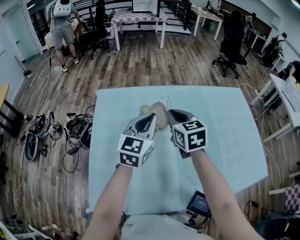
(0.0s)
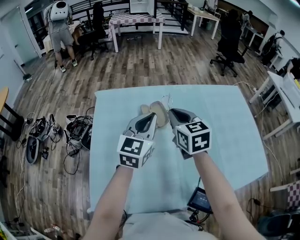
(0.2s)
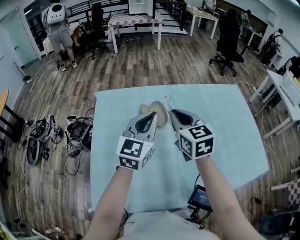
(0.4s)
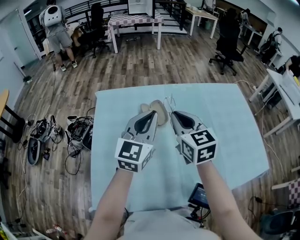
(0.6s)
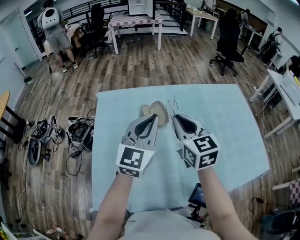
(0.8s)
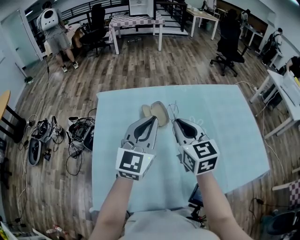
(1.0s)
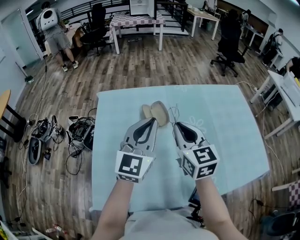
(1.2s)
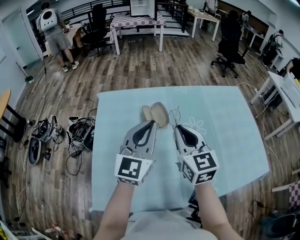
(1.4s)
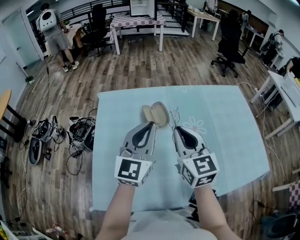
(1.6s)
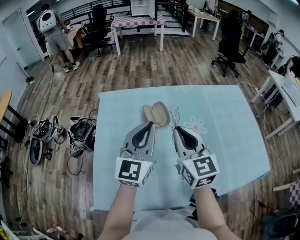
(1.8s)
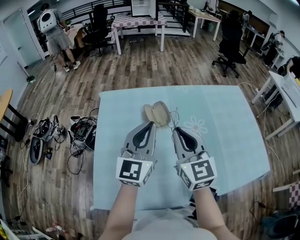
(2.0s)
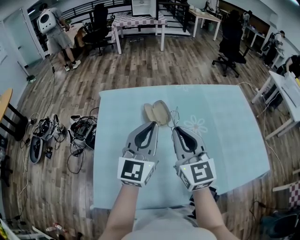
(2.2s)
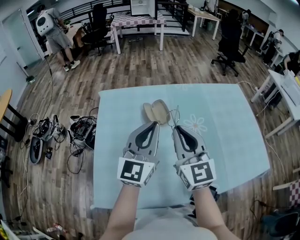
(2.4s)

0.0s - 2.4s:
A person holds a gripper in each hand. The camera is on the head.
0.0s - 1.2s: The left gripper travels backward and upward by roughly 10 cm. The right gripper moves backward, about 10 cm.
1.2s - 2.4s: The right gripper ends up roughly 5 cm from where it was.

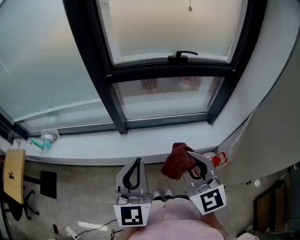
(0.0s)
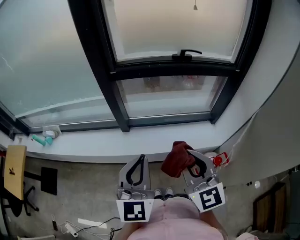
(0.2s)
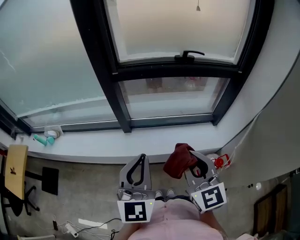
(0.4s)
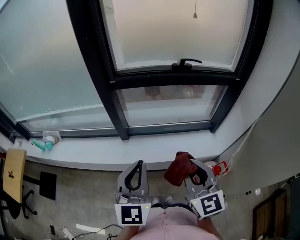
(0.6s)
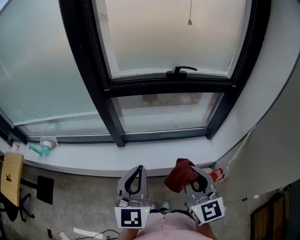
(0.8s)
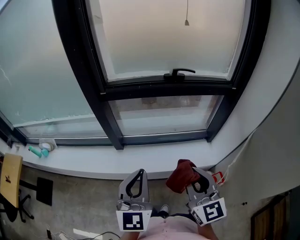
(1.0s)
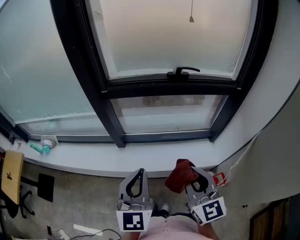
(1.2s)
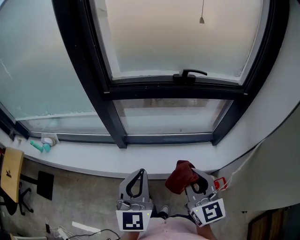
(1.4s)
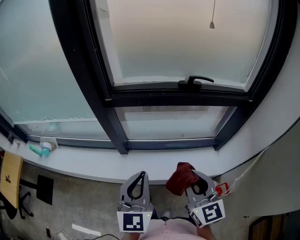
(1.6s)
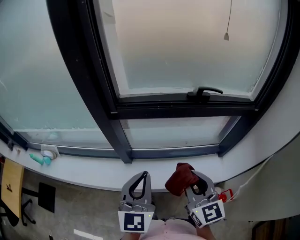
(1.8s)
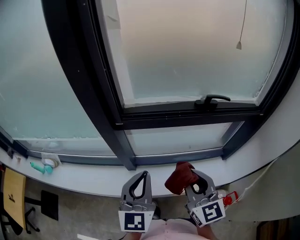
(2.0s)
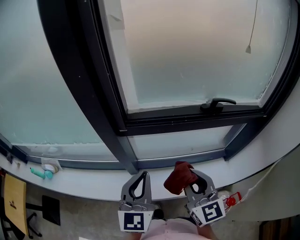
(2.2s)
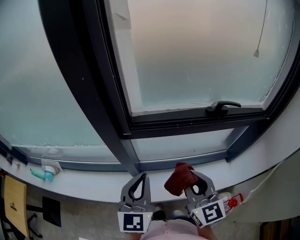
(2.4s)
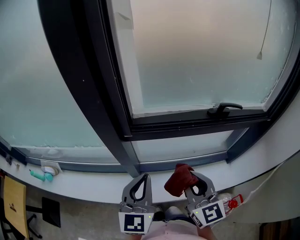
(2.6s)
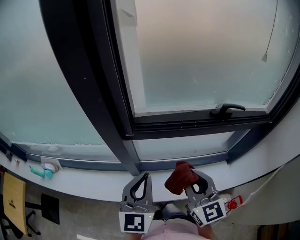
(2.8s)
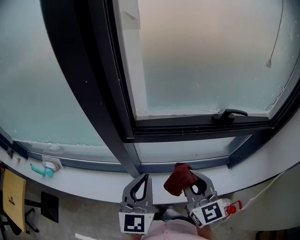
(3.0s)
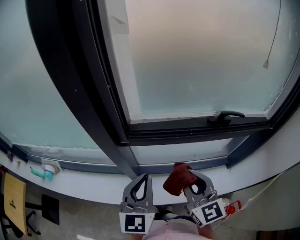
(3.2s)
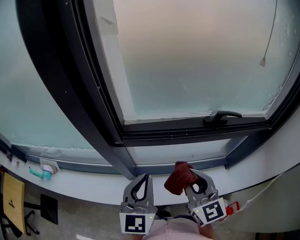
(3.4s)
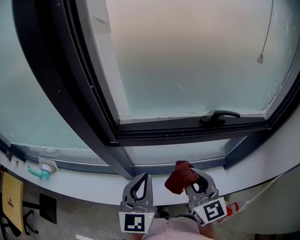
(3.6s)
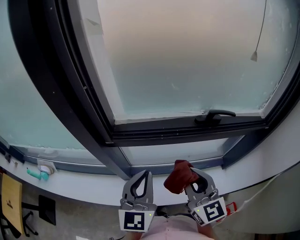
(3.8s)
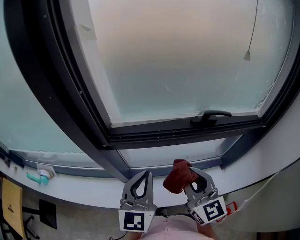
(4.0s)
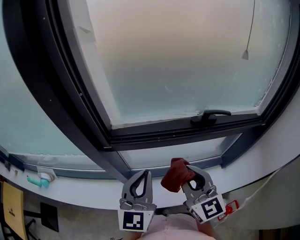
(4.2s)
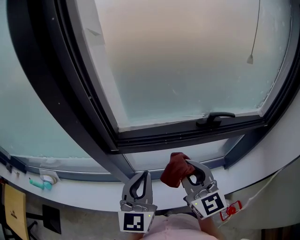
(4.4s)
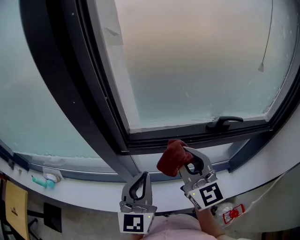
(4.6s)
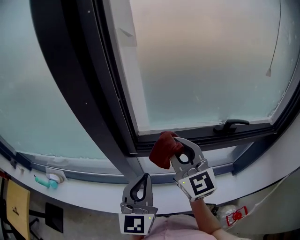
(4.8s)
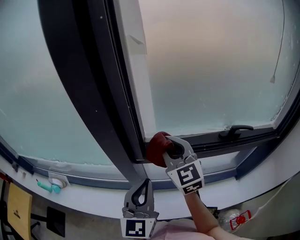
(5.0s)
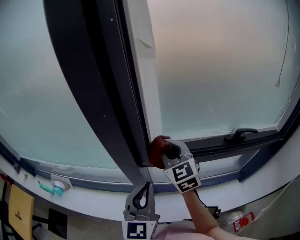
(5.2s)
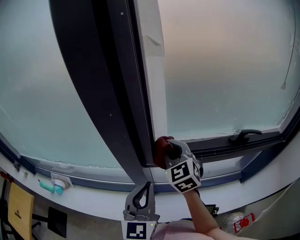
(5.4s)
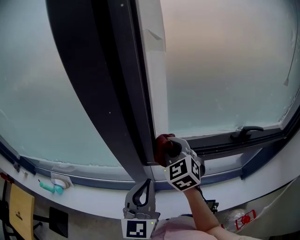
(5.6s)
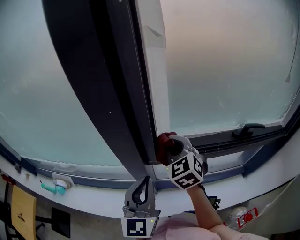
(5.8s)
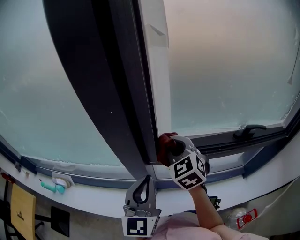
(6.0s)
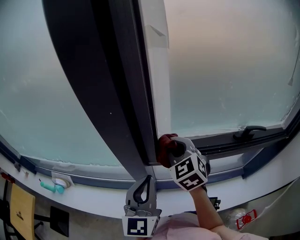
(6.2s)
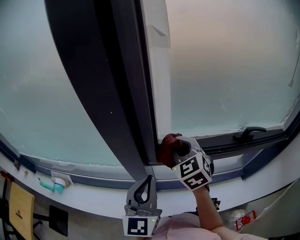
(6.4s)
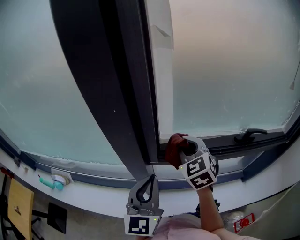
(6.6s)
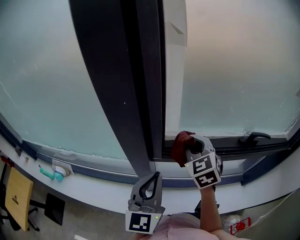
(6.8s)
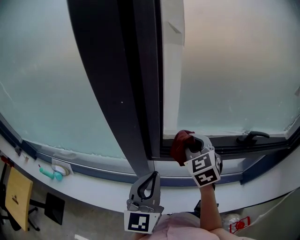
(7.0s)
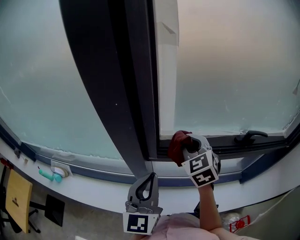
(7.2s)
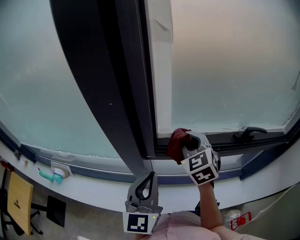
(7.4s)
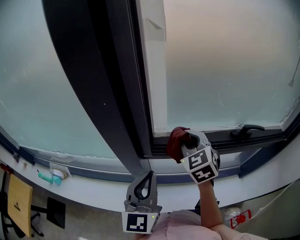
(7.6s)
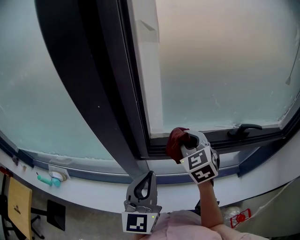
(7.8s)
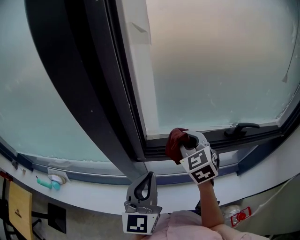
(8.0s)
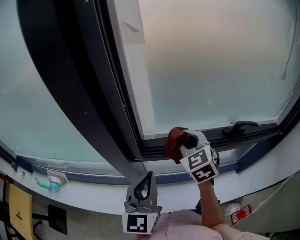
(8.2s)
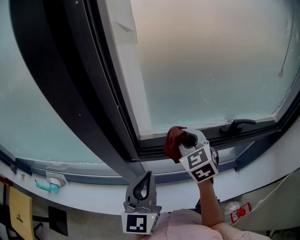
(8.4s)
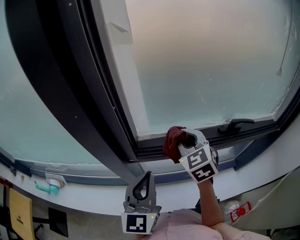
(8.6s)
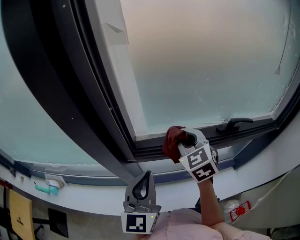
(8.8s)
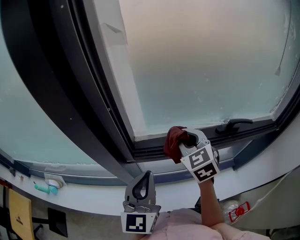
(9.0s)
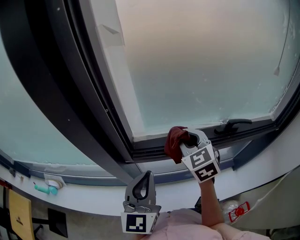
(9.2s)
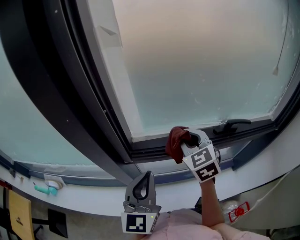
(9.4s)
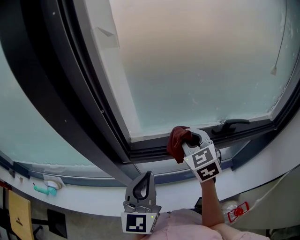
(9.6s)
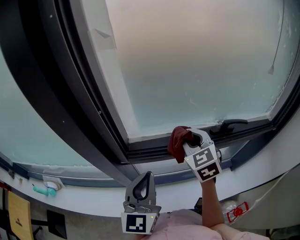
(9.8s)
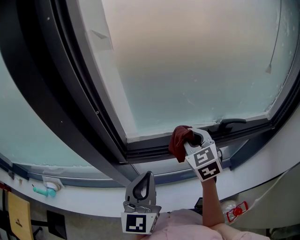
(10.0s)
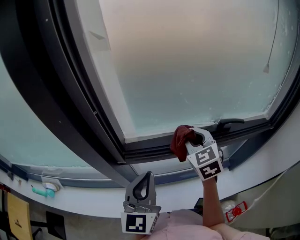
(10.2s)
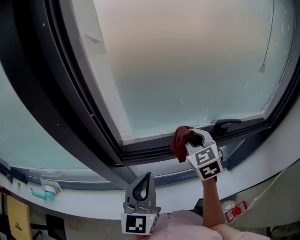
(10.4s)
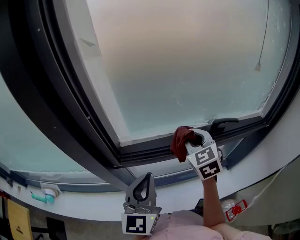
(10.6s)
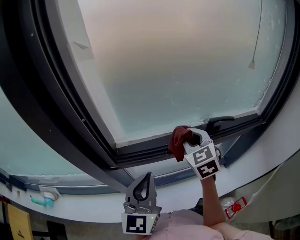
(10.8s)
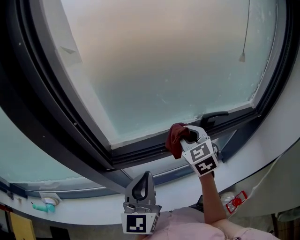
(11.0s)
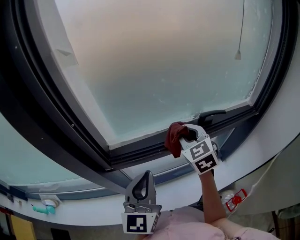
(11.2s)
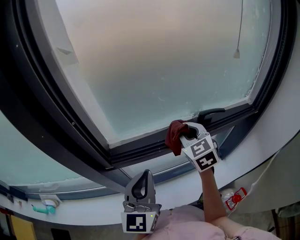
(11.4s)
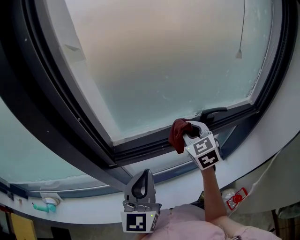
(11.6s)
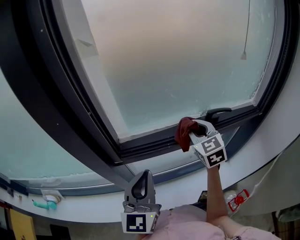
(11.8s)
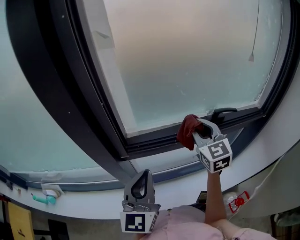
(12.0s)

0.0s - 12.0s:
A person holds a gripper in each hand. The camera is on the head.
0.0s - 1.6s: The right gripper shifts some 15 cm forward and to the right, while the left gripper travels forward by about 15 cm.
1.6s - 3.0s: The two grippers go roughly 25 cm forward and to the left.
3.0s - 4.4s: The right gripper moves approximately 10 cm; the left gripper heads to the right, covering approximately 5 cm.
4.4s - 6.0s: The left gripper goes about 15 cm to the left and forward, while the right gripper travels forward and to the left by roughly 25 cm, and changes its angle by approximately 30 degrees.
6.0s - 7.6s: The right gripper moves to the right, roughly 5 cm.
7.6s - 9.0s: The right gripper is displaced to the right by approximately 5 cm, while the left gripper moves approximately 5 cm.
9.0s - 10.4s: The right gripper moves to the right, about 10 cm.
10.4s - 12.0s: The grippers move only a little.

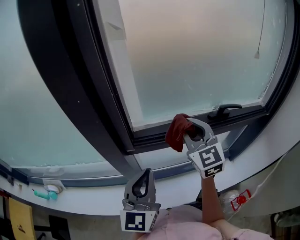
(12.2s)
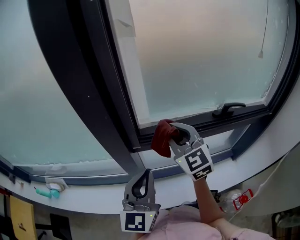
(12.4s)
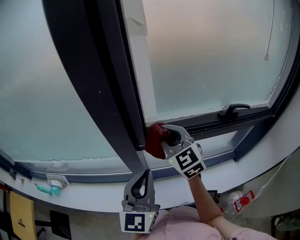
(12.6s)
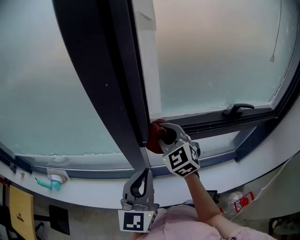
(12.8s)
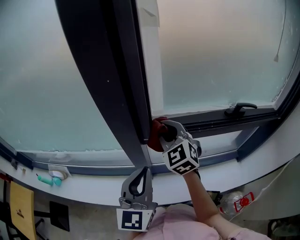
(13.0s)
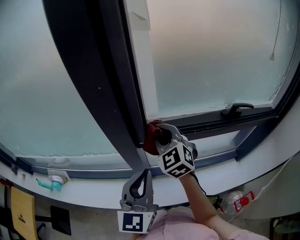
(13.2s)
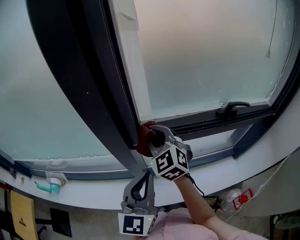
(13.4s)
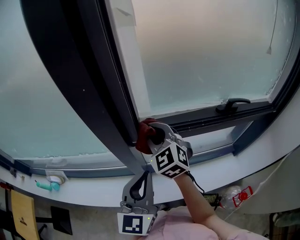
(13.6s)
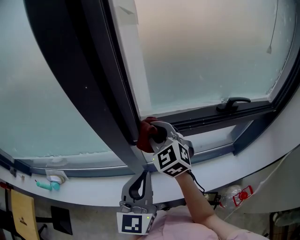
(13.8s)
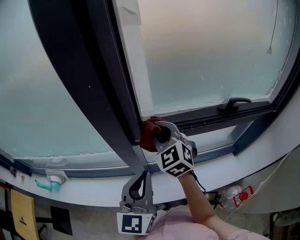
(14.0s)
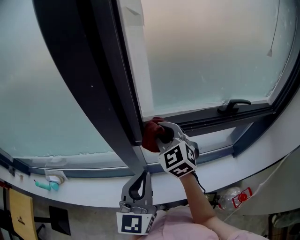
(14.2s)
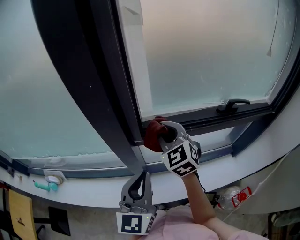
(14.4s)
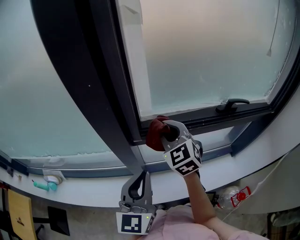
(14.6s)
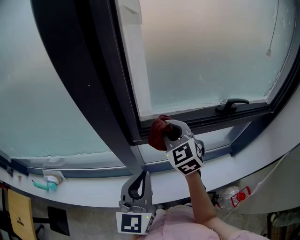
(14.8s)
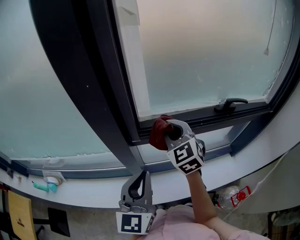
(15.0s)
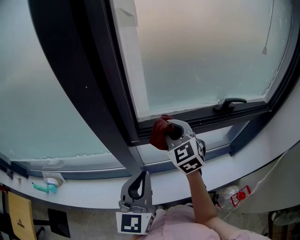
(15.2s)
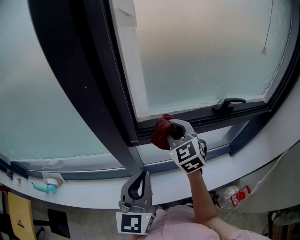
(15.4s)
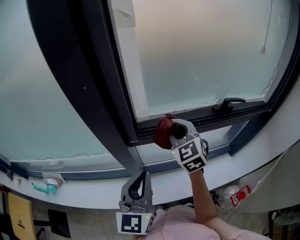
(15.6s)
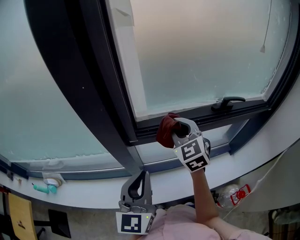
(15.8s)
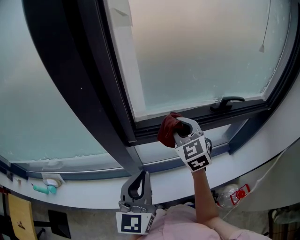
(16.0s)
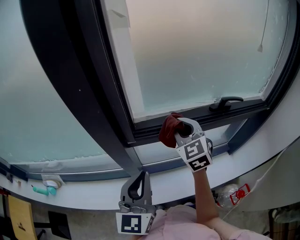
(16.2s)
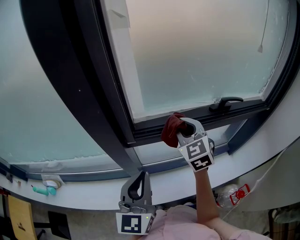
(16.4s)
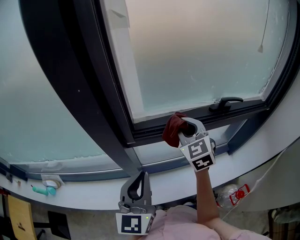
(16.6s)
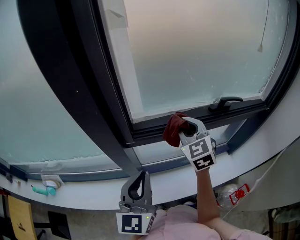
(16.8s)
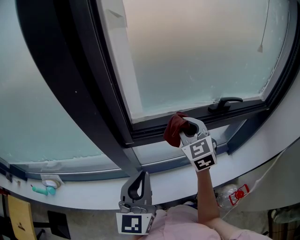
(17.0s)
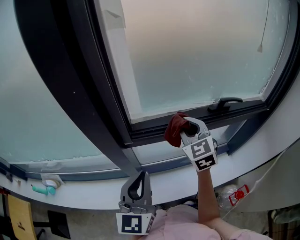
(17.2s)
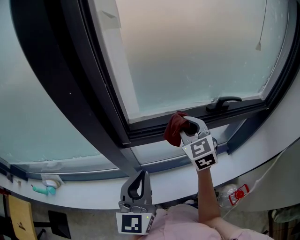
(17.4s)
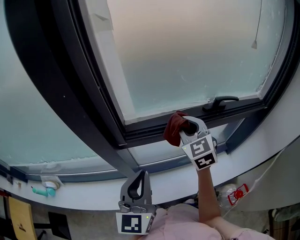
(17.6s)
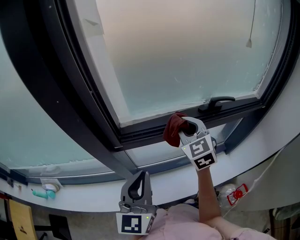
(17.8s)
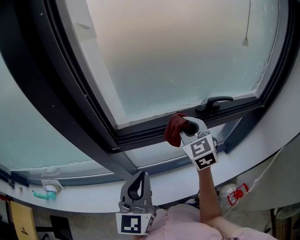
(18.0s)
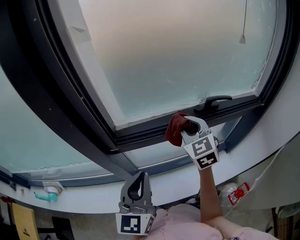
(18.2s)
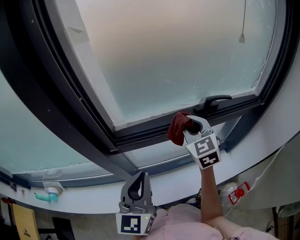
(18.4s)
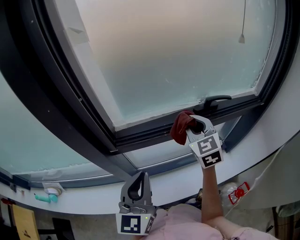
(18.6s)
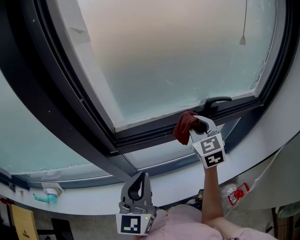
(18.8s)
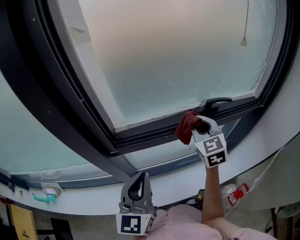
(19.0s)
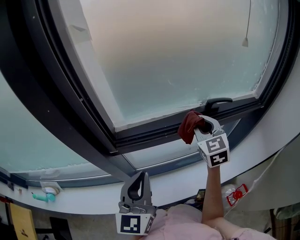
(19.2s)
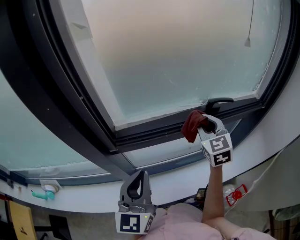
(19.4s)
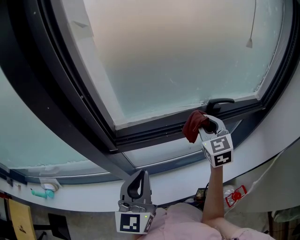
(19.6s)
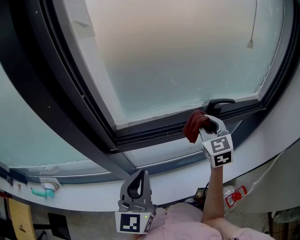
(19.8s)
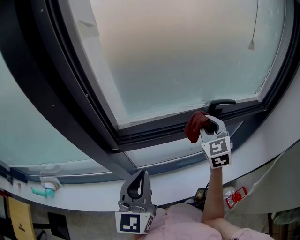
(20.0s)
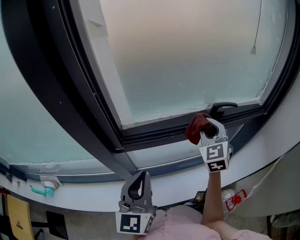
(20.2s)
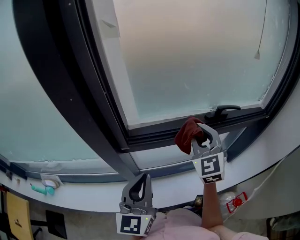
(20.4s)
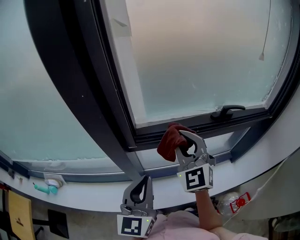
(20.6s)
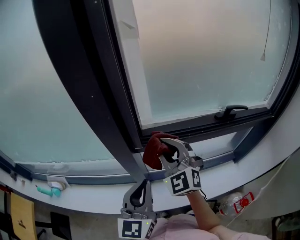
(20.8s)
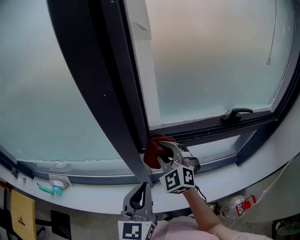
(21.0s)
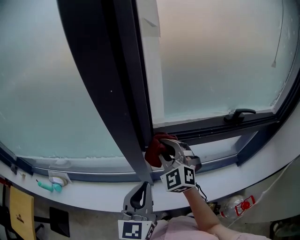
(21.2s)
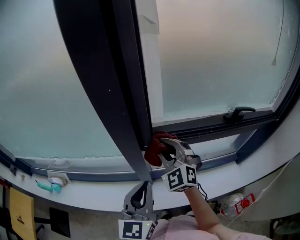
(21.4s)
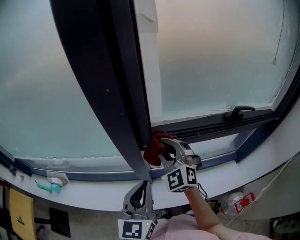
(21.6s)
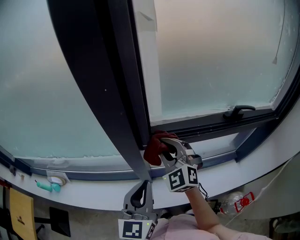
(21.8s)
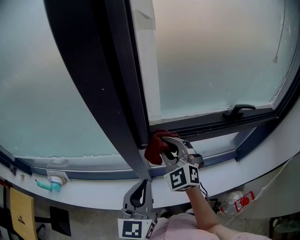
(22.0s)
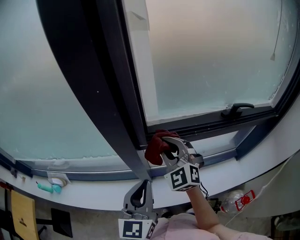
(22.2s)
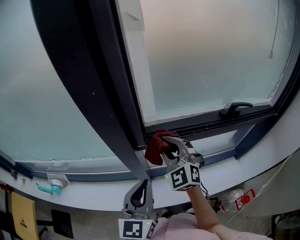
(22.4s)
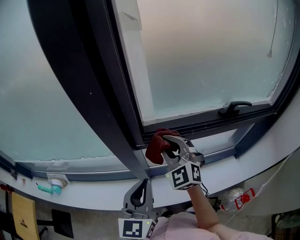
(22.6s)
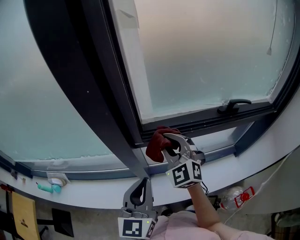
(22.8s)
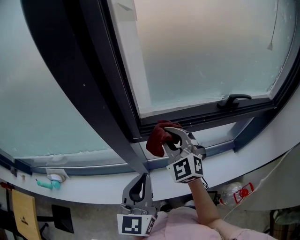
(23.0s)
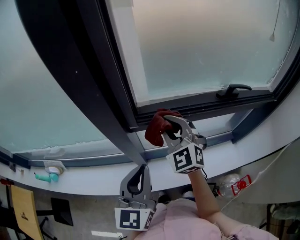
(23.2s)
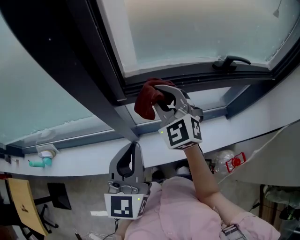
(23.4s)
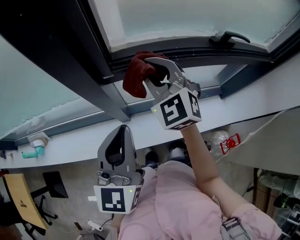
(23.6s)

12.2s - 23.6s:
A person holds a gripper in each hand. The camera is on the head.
12.2s - 13.6s: The right gripper moves to the left, approximately 15 cm.
13.6s - 15.0s: The right gripper heads to the right, covering roughly 5 cm.
15.0s - 16.4s: The right gripper is displaced to the right by some 5 cm.
16.4s - 17.8s: The right gripper goes approximately 5 cm to the right. Meanwhile the left gripper changes place by about 5 cm.
17.8s - 19.4s: The right gripper shifts approximately 10 cm to the right.
19.4s - 20.8s: The left gripper shifts approximately 10 cm to the left. Meanwhile the right gripper shifts about 25 cm to the left, and changes its angle by approximately 30 degrees.
20.8s - 23.6s: There are only small adjustments of the grippers.
